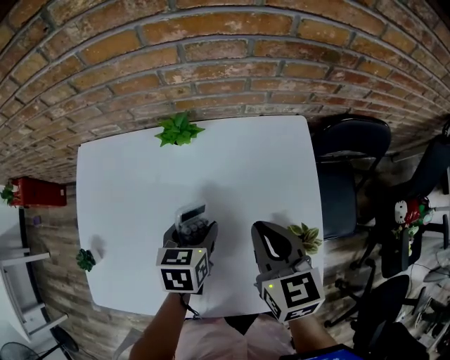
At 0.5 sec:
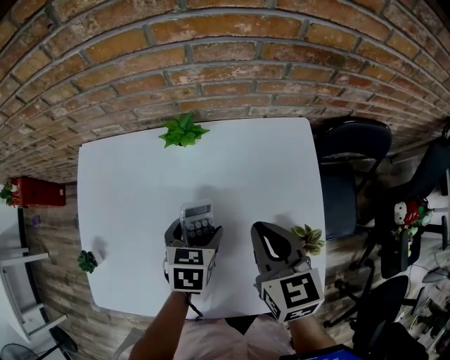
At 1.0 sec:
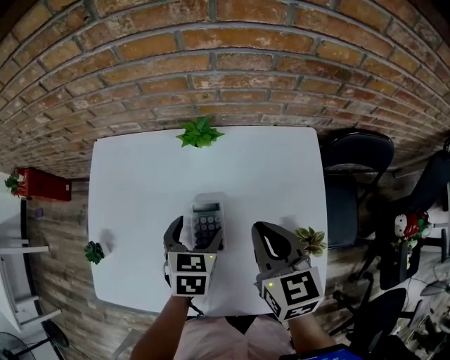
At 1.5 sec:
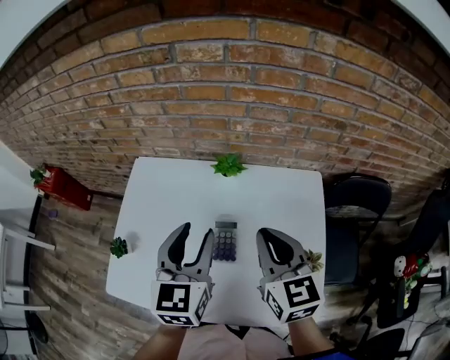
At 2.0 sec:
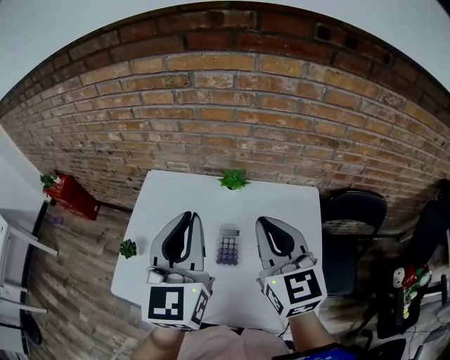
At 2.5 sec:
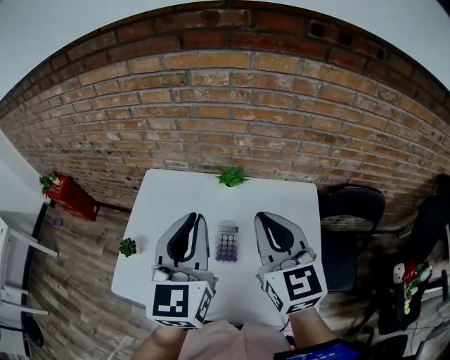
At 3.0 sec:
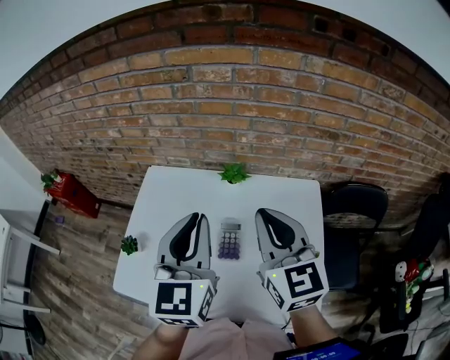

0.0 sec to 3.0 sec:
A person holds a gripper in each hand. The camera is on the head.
0.0 sec to 1.5 sec: The right gripper heads upward and to the left, covering about 10 cm; the left gripper heads upward, covering some 20 cm, and points its fingers some 30 degrees further upward.
1.5 sec to 3.0 sec: The grippers both shift upward by about 10 cm. The left gripper closes its fingers.

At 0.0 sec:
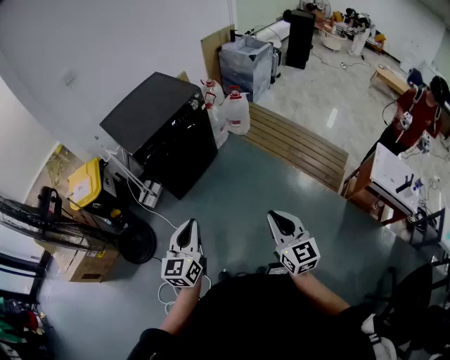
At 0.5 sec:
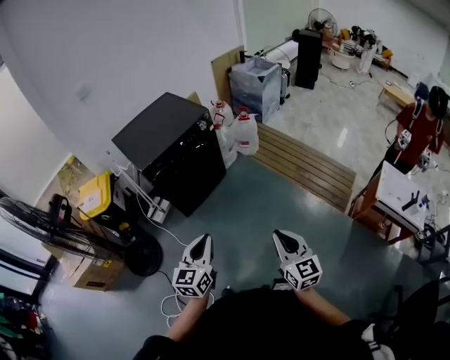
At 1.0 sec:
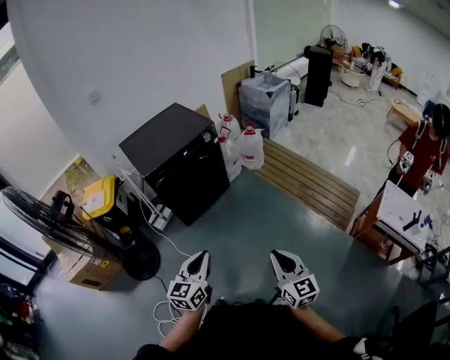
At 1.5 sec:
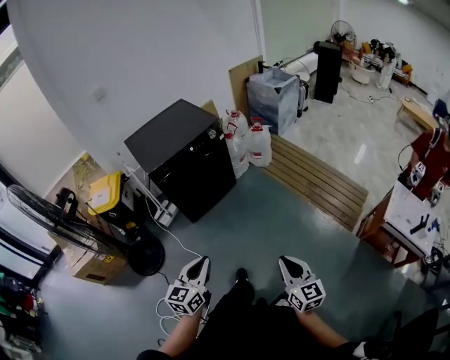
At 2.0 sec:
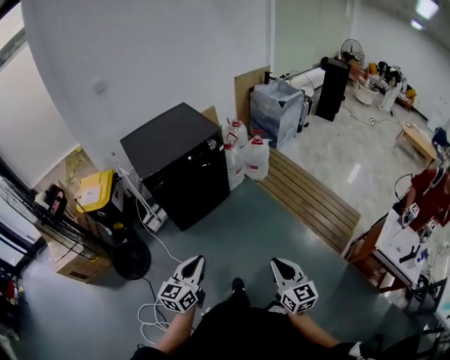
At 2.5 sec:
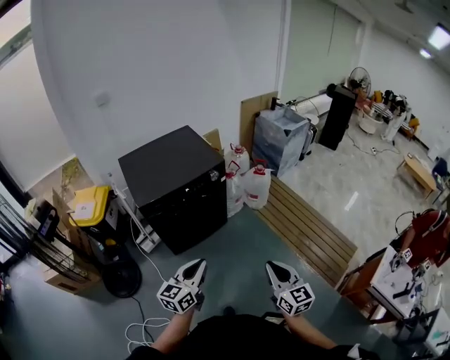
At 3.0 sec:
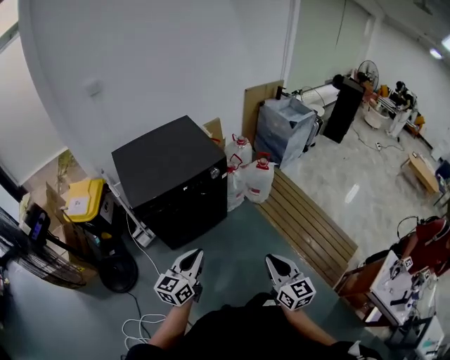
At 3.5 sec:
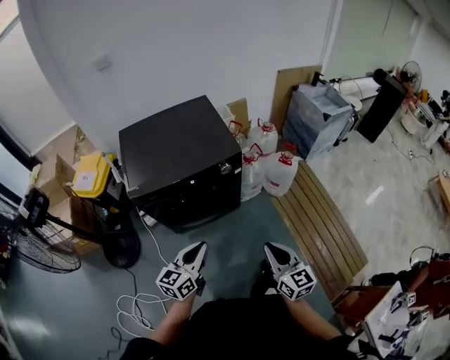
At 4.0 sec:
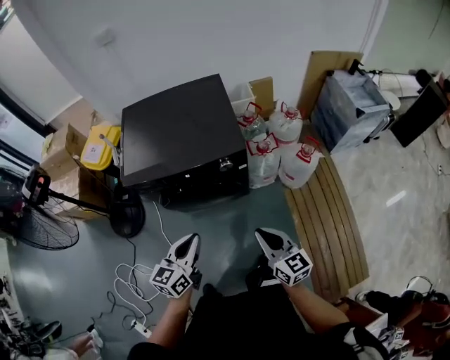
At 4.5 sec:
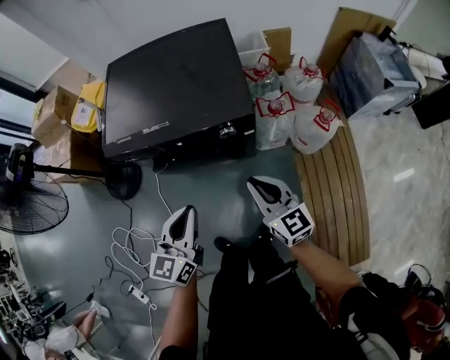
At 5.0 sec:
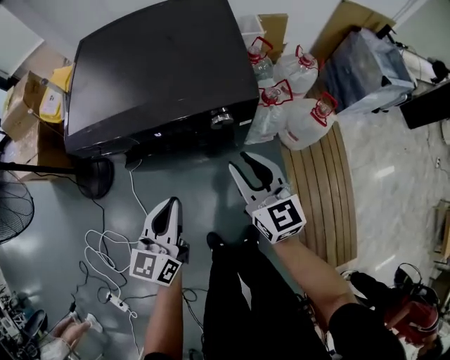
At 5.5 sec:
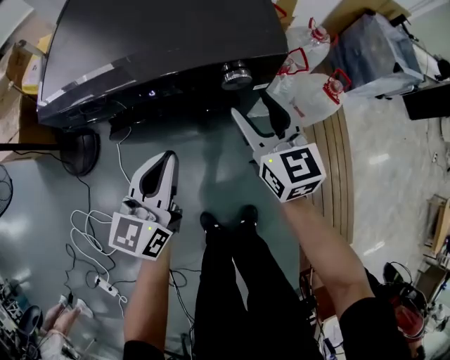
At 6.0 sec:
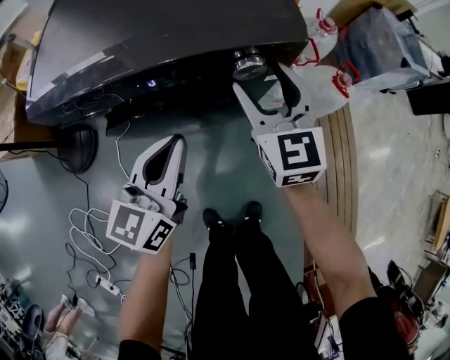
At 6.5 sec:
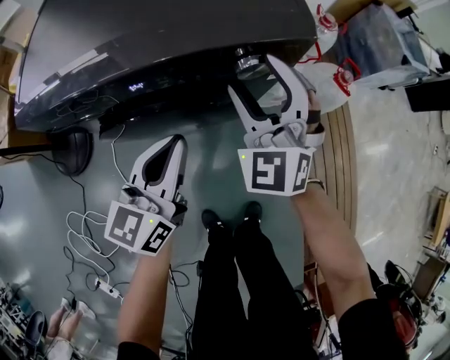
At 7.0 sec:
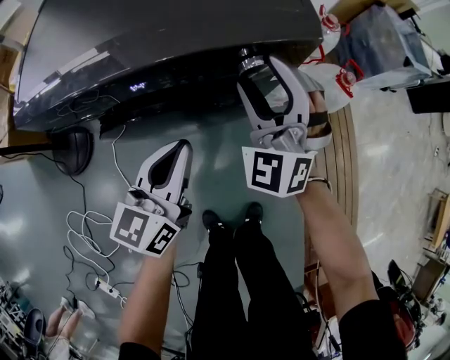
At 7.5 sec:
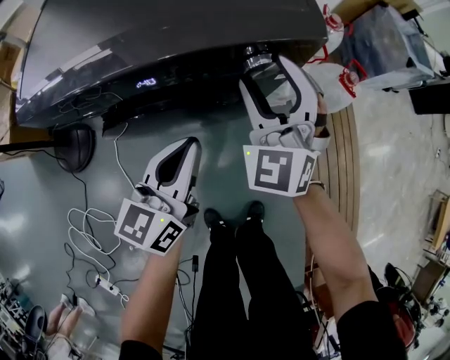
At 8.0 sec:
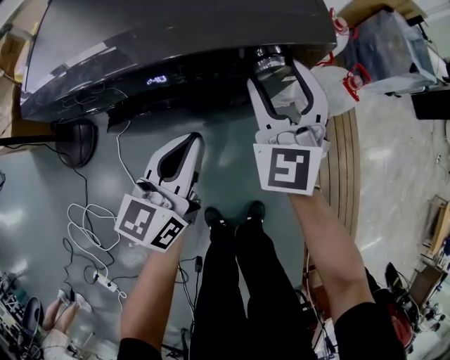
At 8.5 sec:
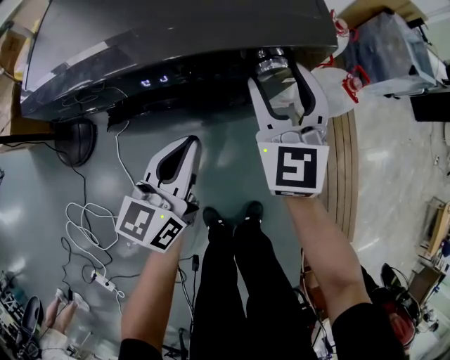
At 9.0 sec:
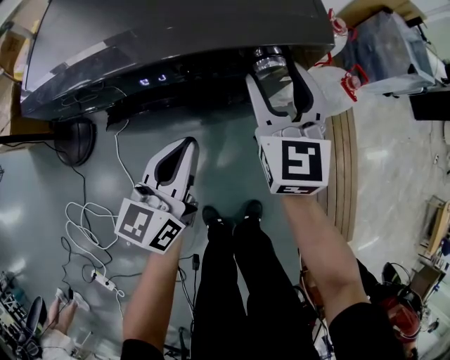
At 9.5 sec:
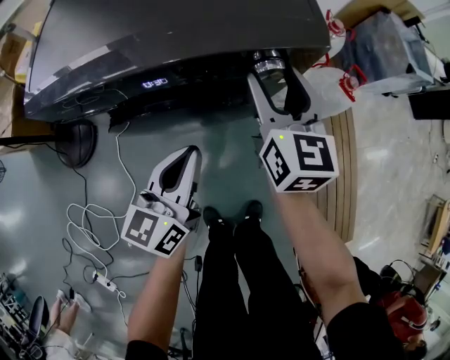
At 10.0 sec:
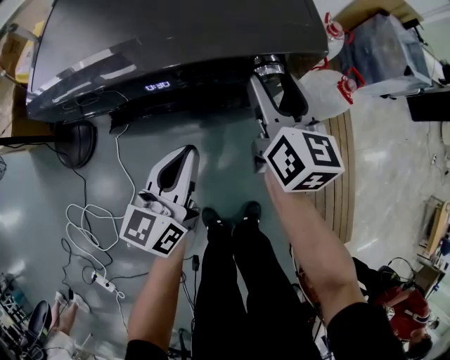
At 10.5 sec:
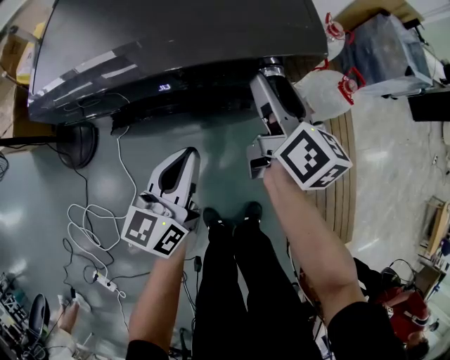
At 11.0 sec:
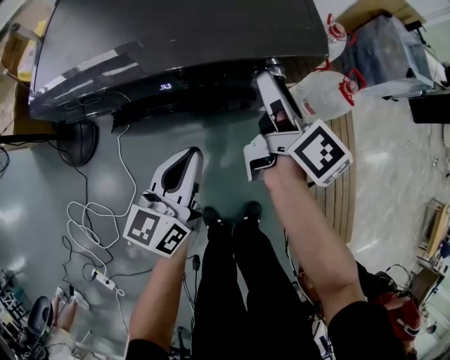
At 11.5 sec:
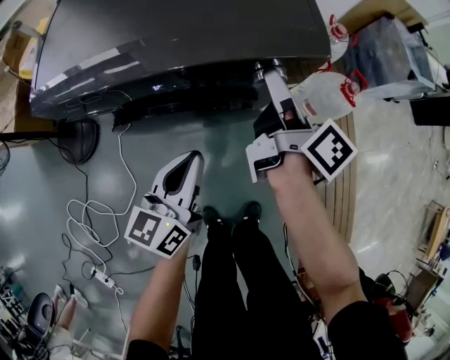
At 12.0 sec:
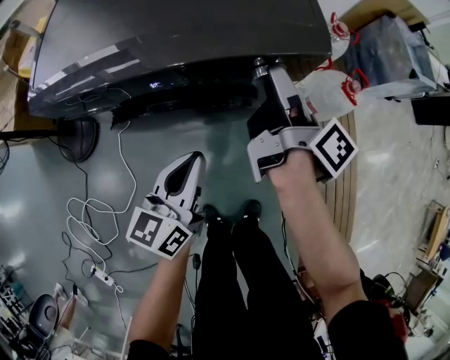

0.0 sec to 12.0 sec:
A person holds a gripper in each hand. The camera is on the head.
0.0 sec to 2.0 sec: Both grippers move to the right, approximately 5 cm. The left gripper moves some 5 cm backward and comes back.
2.0 sec to 4.0 sec: The pair of grippers is taken some 50 cm. The left gripper changes its angle by approximately 30 degrees; the right gripper rotates approximately 40 degrees.
4.0 sec to 6.0 sec: The left gripper is displaced downward and forward by about 30 cm. The right gripper goes roughly 35 cm forward and downward, swivels approximately 30 degrees, and opens up.
8.0 sec to 10.0 sec: The right gripper twists roughly 50 degrees clockwise, seen from behind.
10.0 sec to 12.0 sec: The right gripper twists approximately 60 degrees clockwise, seen from behind.

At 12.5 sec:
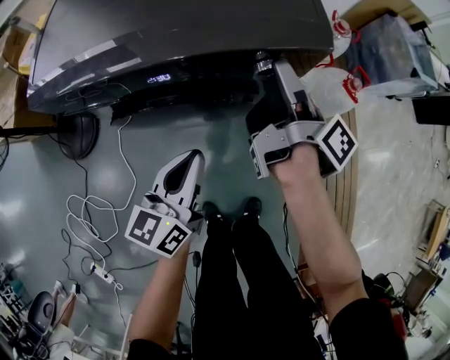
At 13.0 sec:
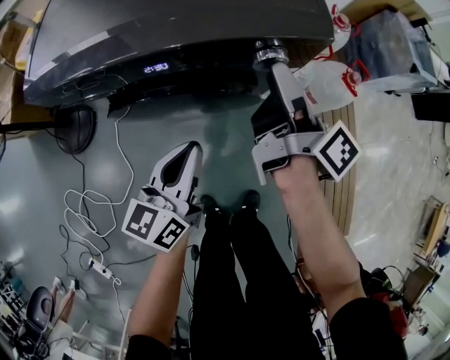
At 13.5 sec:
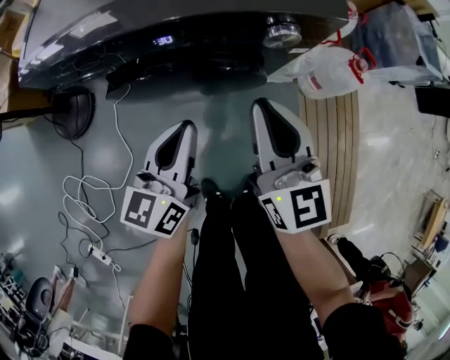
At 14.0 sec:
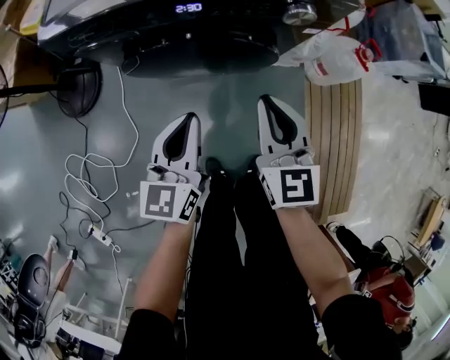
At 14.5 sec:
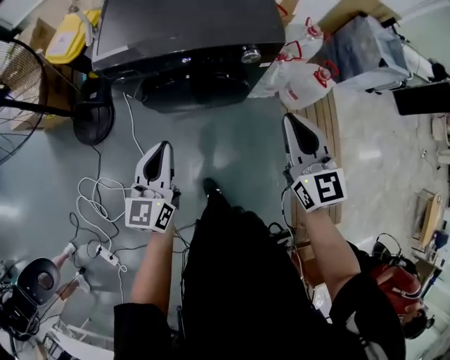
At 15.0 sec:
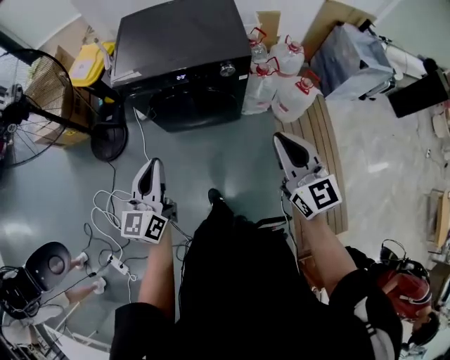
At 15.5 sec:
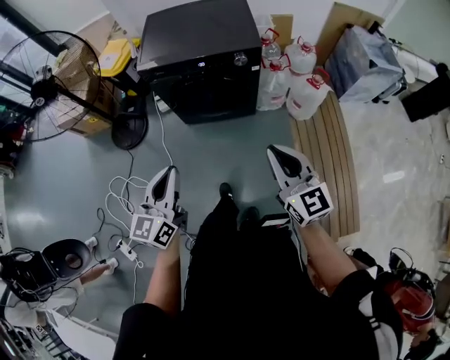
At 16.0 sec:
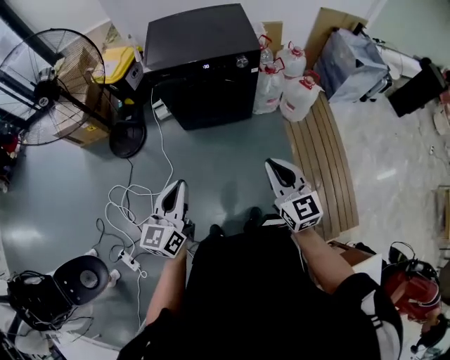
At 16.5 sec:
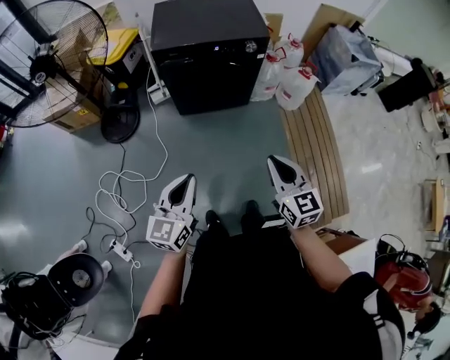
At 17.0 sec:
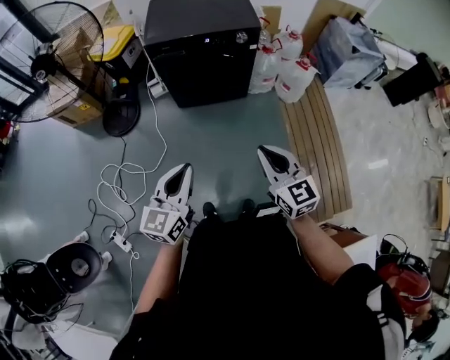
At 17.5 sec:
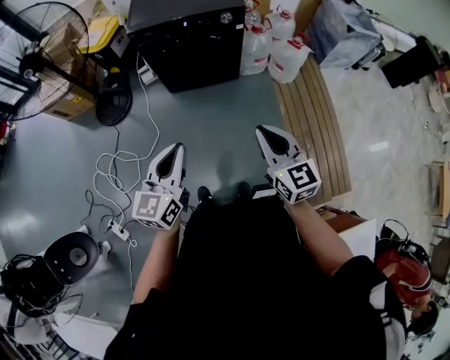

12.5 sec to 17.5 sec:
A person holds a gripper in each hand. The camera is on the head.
12.5 sec to 15.0 sec: The right gripper is displaced backward and upward by roughly 50 cm, rotates around the line of its fingers by about 90 degrees, counterclockwise from behind, and closes its fingers. Meanwhile the left gripper heads upward and backward, covering some 40 cm, and rotates approximately 20 degrees.
15.0 sec to 17.5 sec: The two grippers go approximately 30 cm backward.

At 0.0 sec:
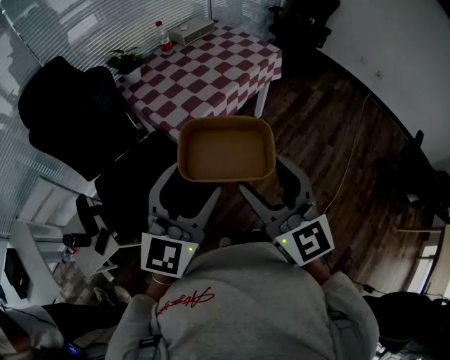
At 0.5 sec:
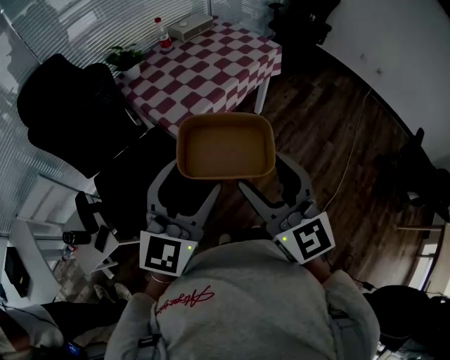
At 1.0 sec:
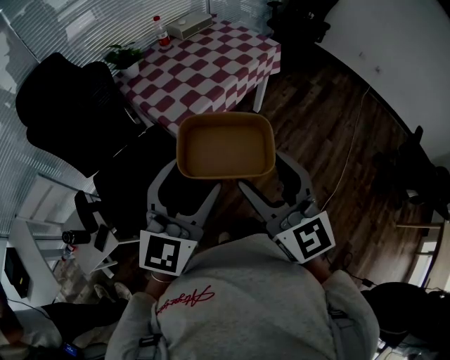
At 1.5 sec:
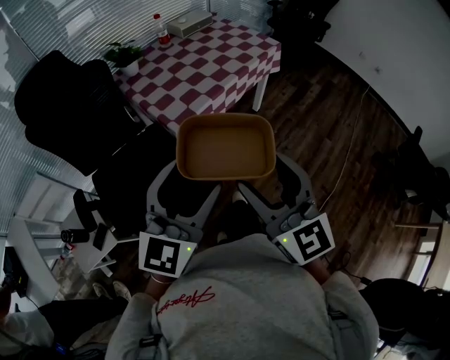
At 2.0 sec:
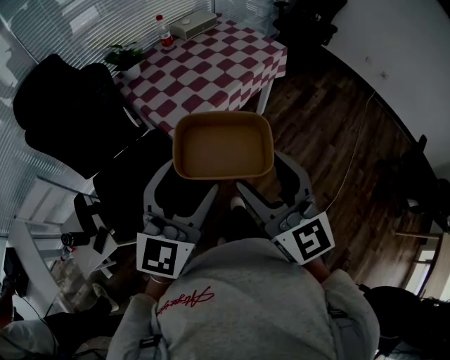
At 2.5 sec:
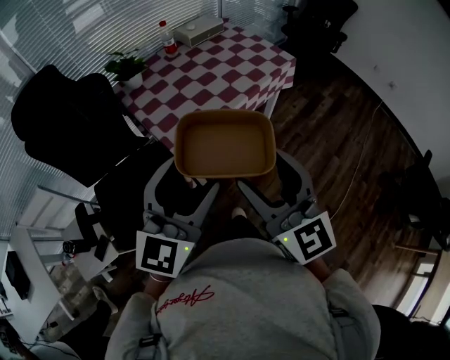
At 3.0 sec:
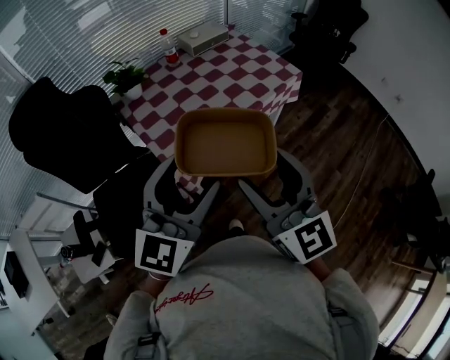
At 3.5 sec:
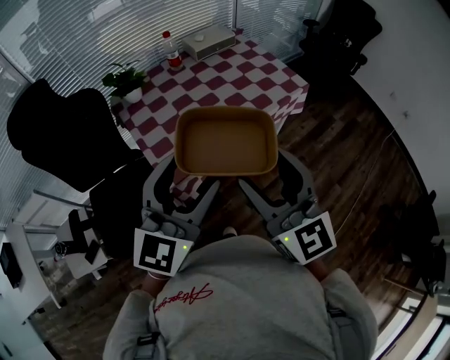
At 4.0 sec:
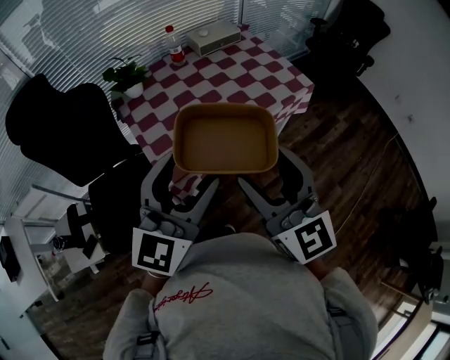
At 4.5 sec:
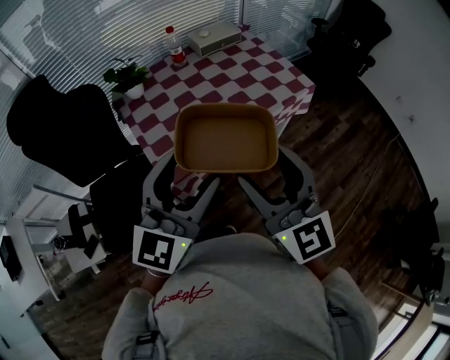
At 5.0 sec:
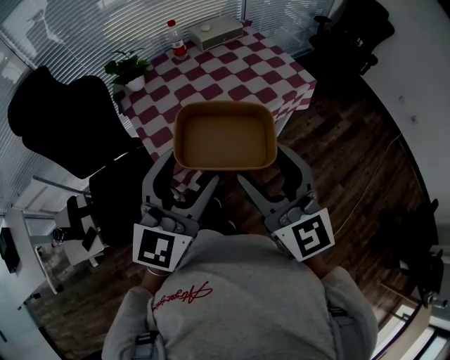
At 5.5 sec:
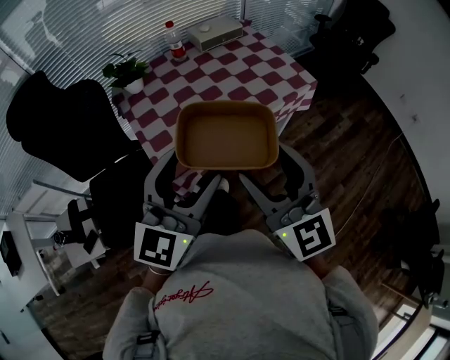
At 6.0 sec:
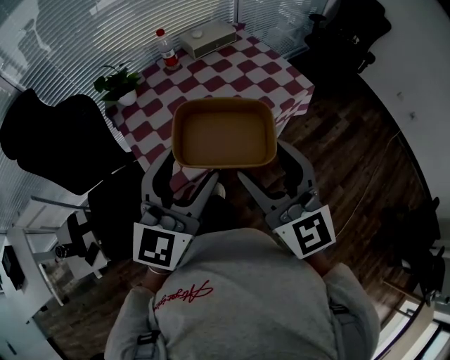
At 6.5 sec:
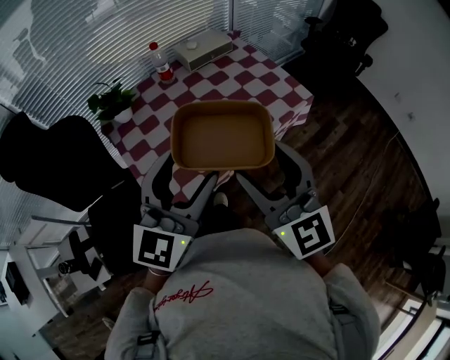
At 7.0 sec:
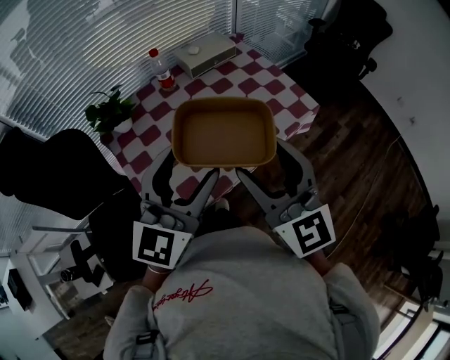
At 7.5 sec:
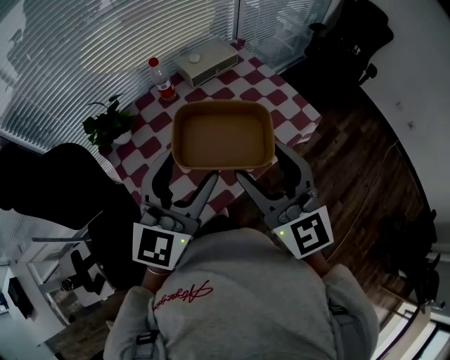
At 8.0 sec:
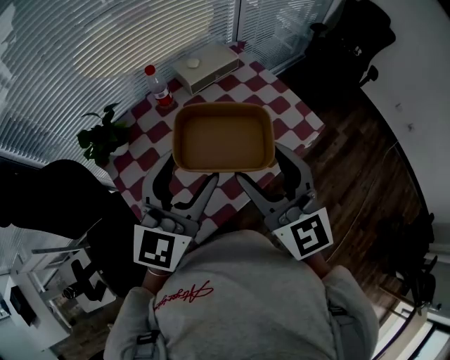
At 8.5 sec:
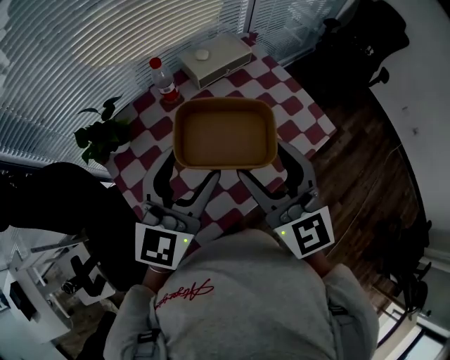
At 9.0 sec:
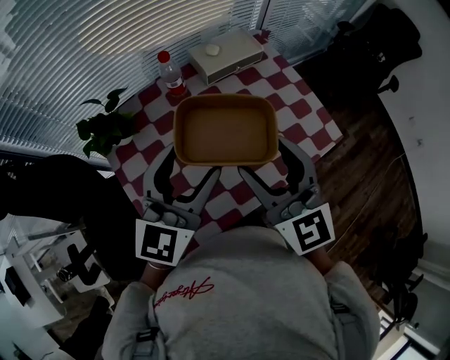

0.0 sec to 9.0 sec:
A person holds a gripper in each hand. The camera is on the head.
0.0 sec to 2.0 sec: There are only small adjustments of the grippers.
2.0 sec to 4.5 sec: Both grippers move forward, roughly 25 cm.
4.5 sec to 7.0 sec: The grippers both shift forward by about 15 cm.
7.0 sec to 9.0 sec: The two grippers go approximately 15 cm forward.
